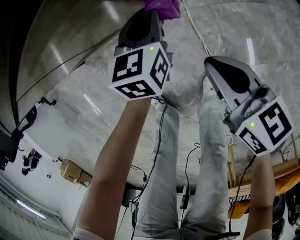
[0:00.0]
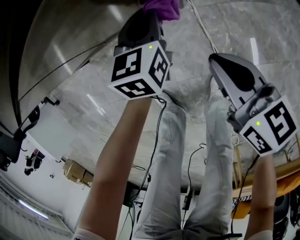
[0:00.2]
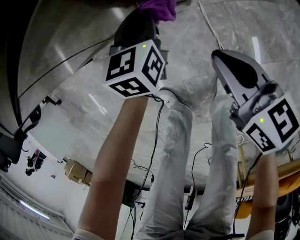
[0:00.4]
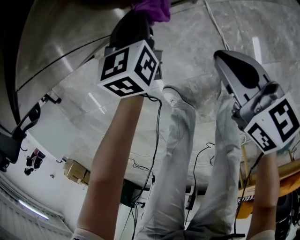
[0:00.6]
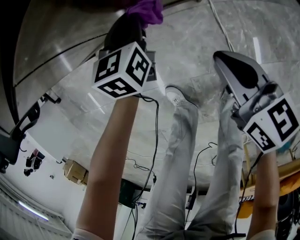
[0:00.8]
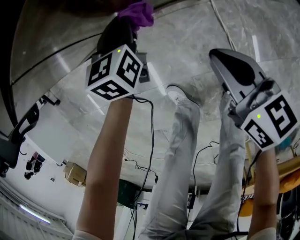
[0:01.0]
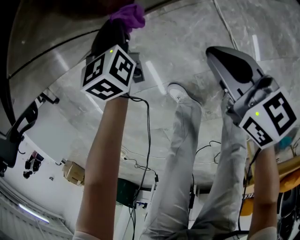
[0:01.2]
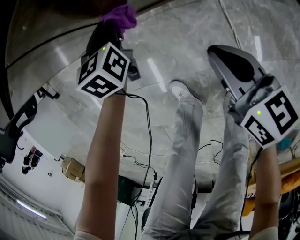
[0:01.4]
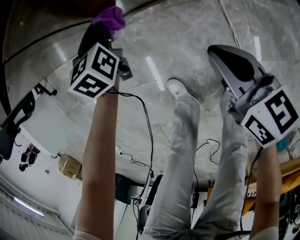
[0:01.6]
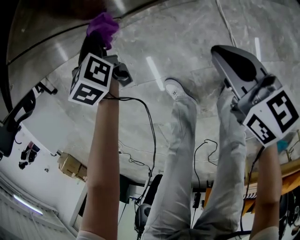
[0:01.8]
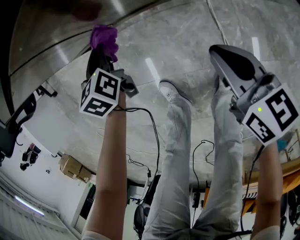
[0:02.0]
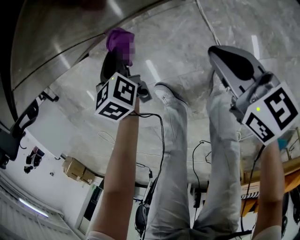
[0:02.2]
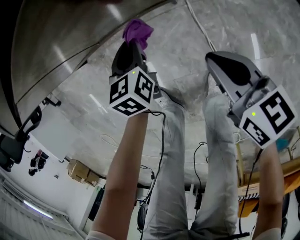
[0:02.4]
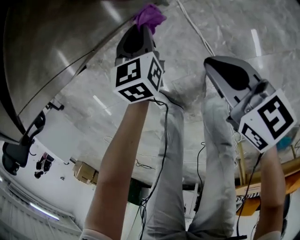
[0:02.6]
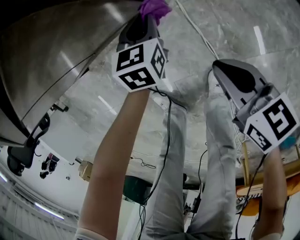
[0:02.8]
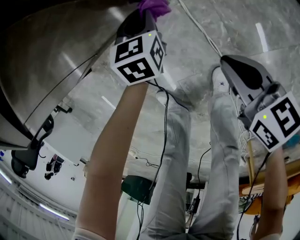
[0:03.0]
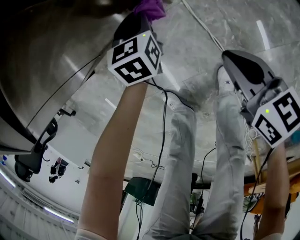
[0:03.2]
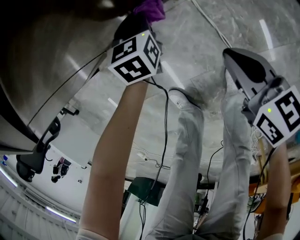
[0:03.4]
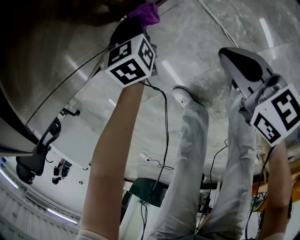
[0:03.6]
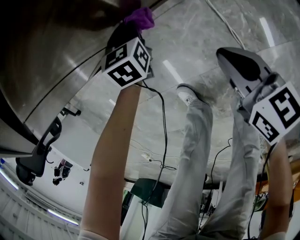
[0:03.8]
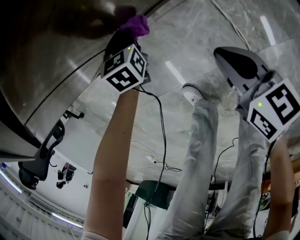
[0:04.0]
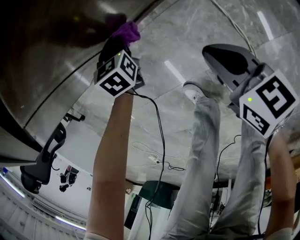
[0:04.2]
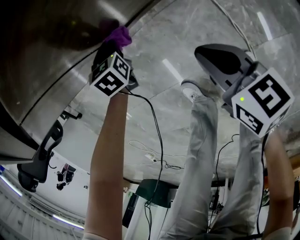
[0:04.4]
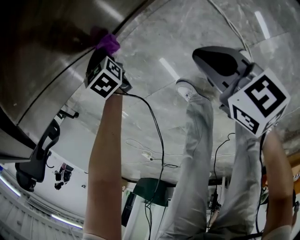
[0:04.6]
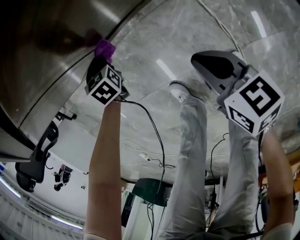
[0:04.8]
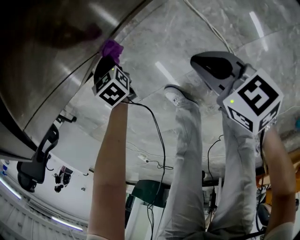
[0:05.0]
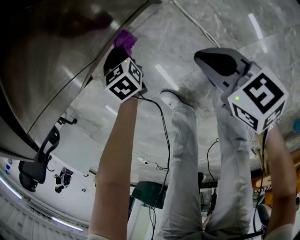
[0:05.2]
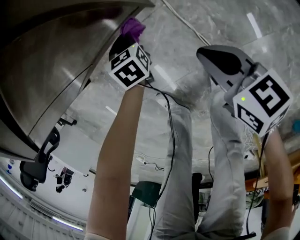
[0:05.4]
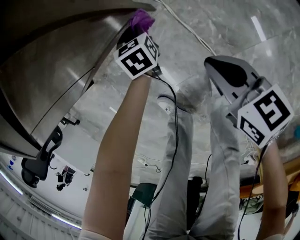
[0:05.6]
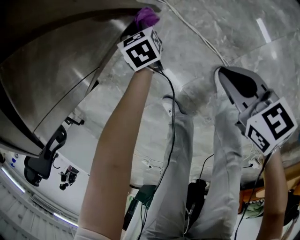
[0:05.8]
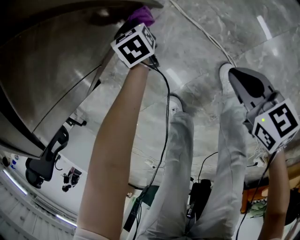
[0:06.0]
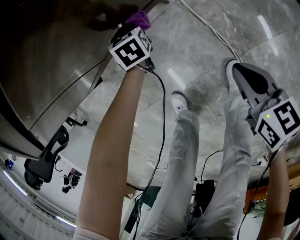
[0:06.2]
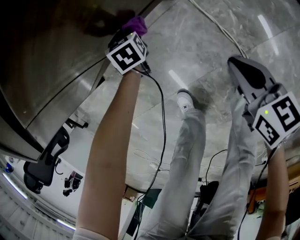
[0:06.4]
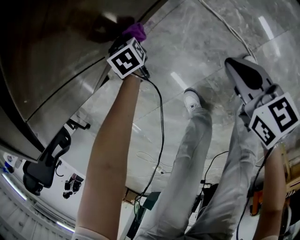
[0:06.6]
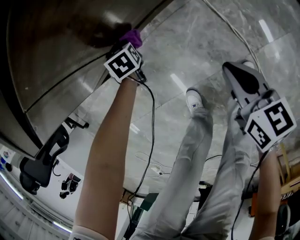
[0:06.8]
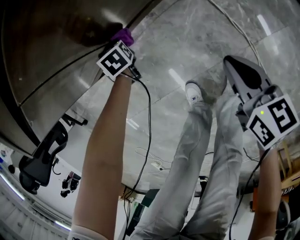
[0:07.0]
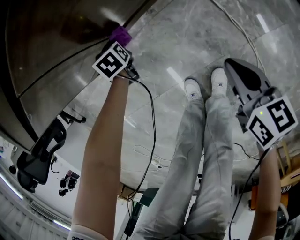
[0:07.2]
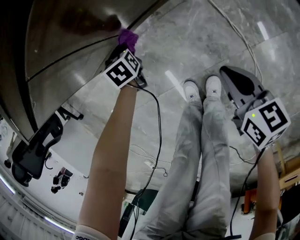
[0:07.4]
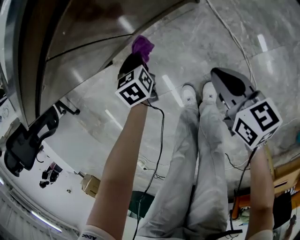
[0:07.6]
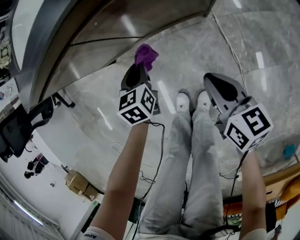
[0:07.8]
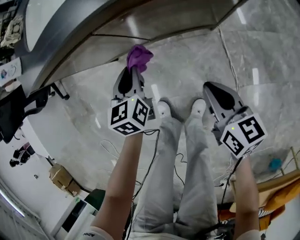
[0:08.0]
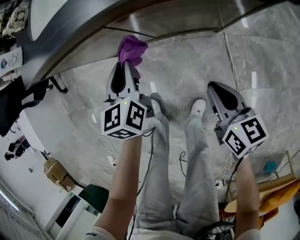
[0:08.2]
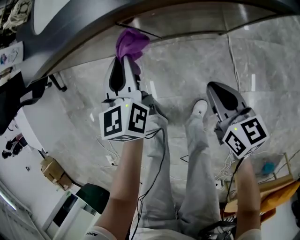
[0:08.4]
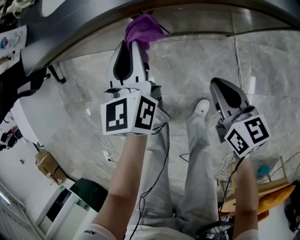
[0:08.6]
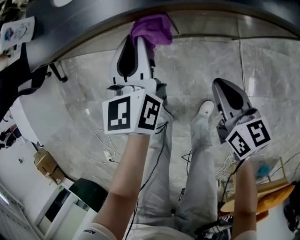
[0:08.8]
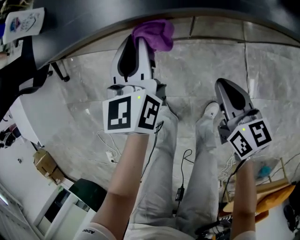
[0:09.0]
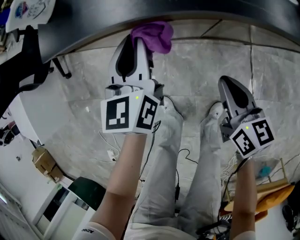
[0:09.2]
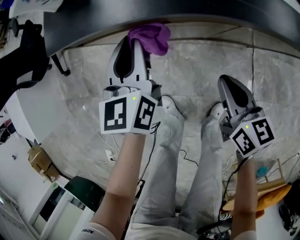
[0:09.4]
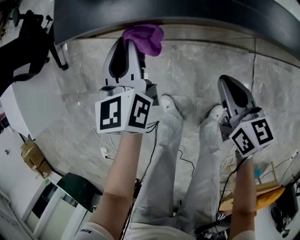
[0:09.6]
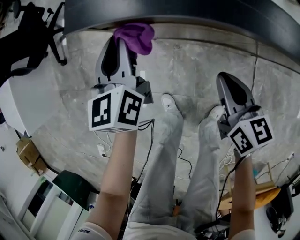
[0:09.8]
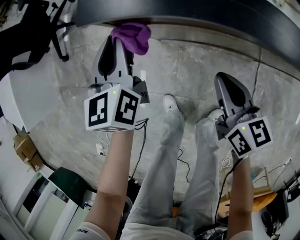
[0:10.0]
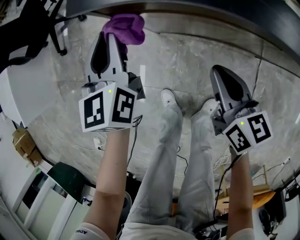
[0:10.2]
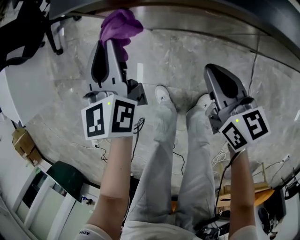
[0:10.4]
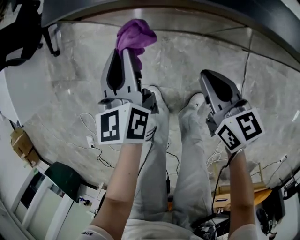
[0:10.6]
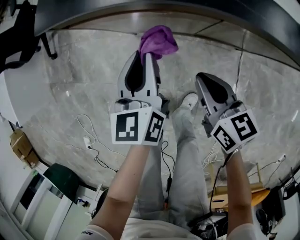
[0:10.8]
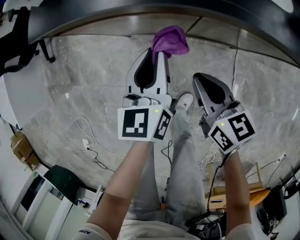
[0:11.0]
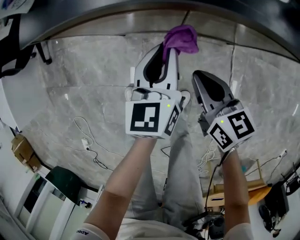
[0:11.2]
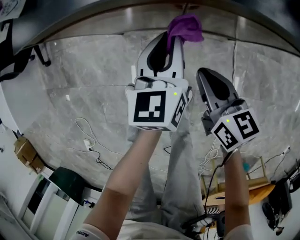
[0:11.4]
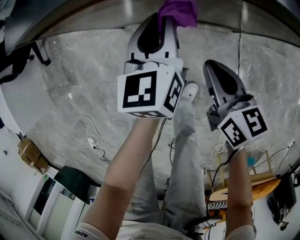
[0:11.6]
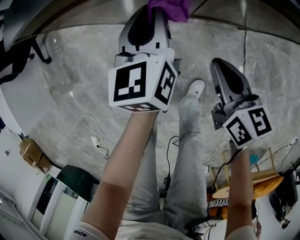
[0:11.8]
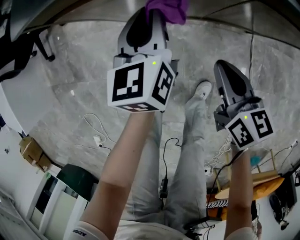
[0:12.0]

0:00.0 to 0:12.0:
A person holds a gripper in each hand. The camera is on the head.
0:00.0 to 0:01.6: The right gripper moves to the left, roughly 15 cm. Meanwhile the left gripper moves to the left, roughly 30 cm.
0:01.6 to 0:03.0: The left gripper heads to the right, covering roughly 35 cm, and changes its angle by about 20 degrees. Meanwhile the right gripper shifts some 20 cm to the right and backward.
0:03.0 to 0:04.4: The right gripper goes some 20 cm to the left. Meanwhile the left gripper shifts some 30 cm to the left.
0:04.4 to 0:06.0: The right gripper goes about 25 cm backward and to the right. Meanwhile the left gripper moves to the right, approximately 25 cm.
0:06.0 to 0:07.6: Both grippers move to the left and upward, roughly 25 cm.
0:07.6 to 0:09.0: The left gripper is displaced upward and to the left by roughly 30 cm, and tilts its fingers roughly 40 degrees upward; the right gripper moves to the left, forward and upward, about 25 cm.
0:09.0 to 0:10.4: The left gripper travels to the left by approximately 20 cm; the right gripper is displaced to the left and forward by roughly 15 cm.
0:10.4 to 0:12.0: The left gripper travels to the right and downward by roughly 15 cm; the right gripper goes about 10 cm to the right and backward.

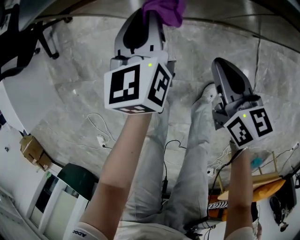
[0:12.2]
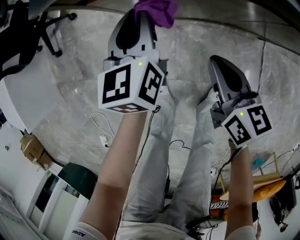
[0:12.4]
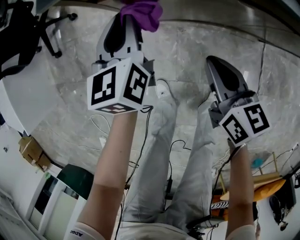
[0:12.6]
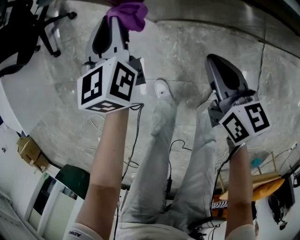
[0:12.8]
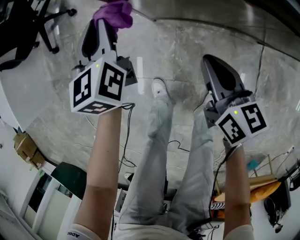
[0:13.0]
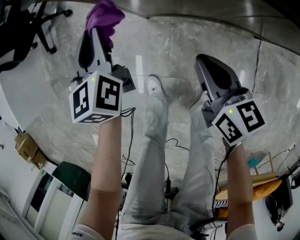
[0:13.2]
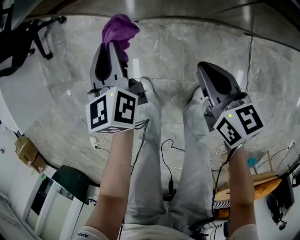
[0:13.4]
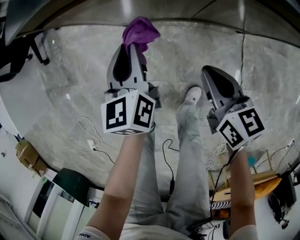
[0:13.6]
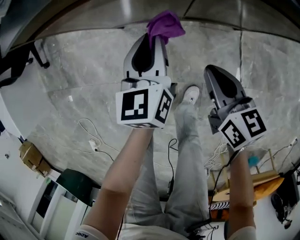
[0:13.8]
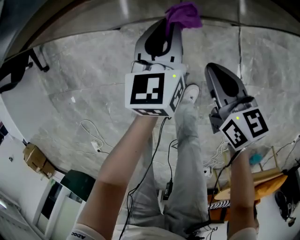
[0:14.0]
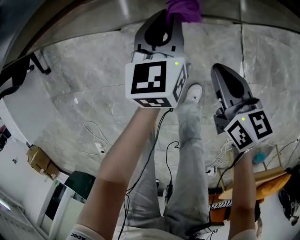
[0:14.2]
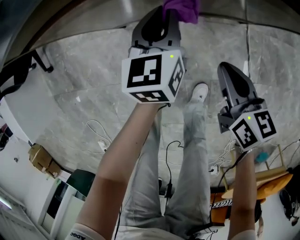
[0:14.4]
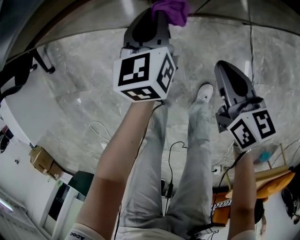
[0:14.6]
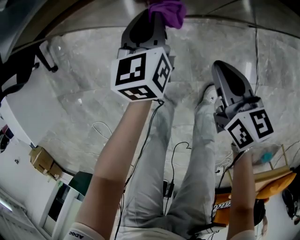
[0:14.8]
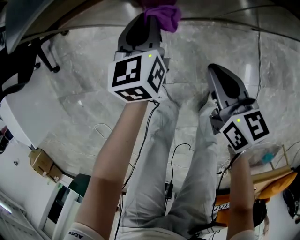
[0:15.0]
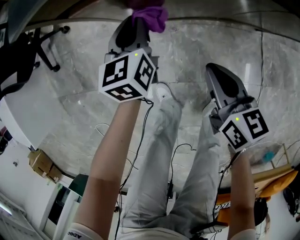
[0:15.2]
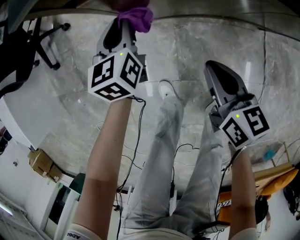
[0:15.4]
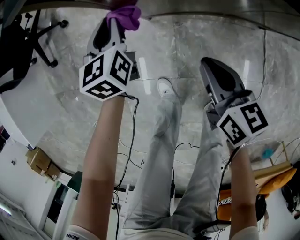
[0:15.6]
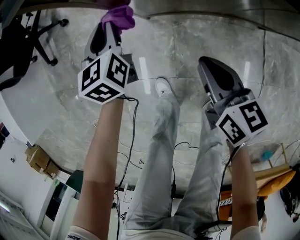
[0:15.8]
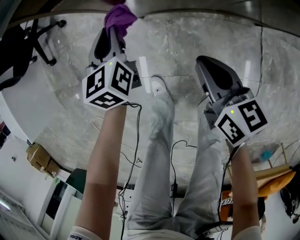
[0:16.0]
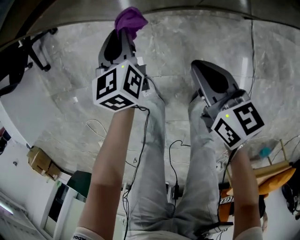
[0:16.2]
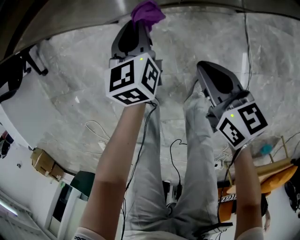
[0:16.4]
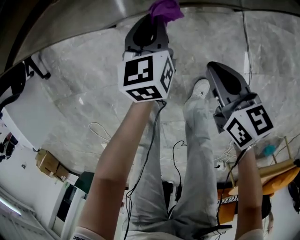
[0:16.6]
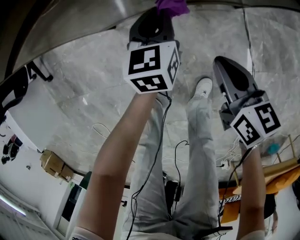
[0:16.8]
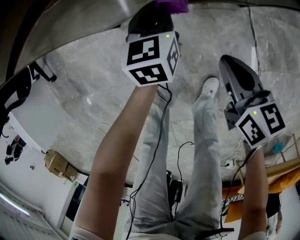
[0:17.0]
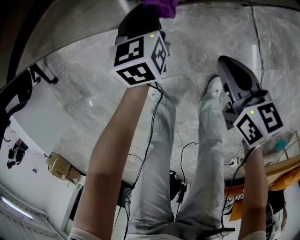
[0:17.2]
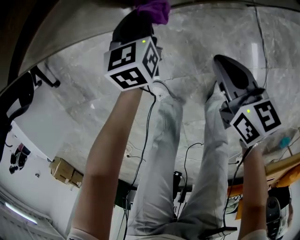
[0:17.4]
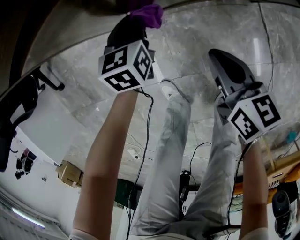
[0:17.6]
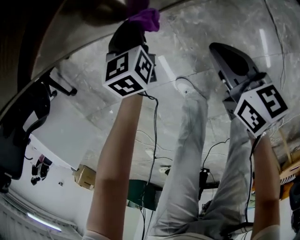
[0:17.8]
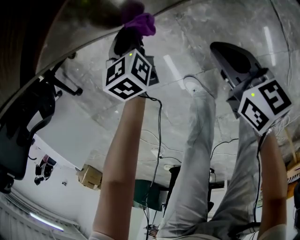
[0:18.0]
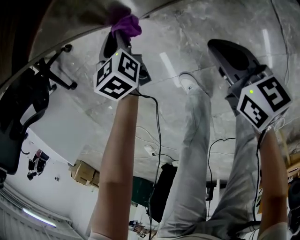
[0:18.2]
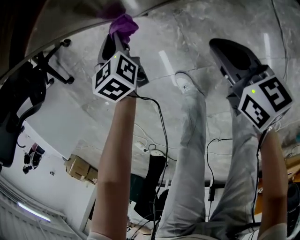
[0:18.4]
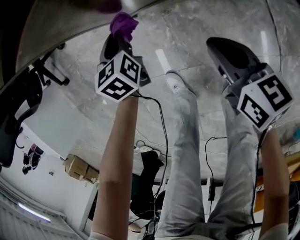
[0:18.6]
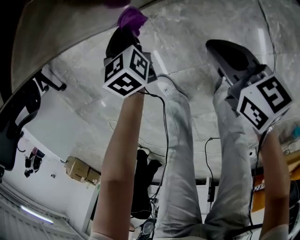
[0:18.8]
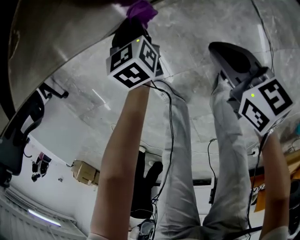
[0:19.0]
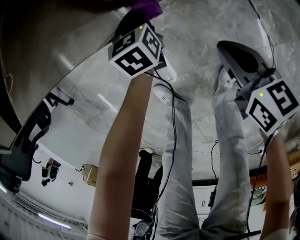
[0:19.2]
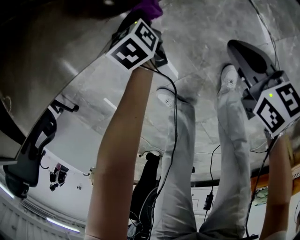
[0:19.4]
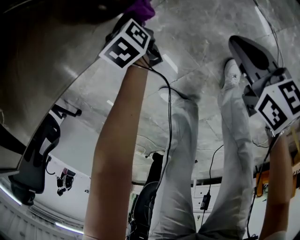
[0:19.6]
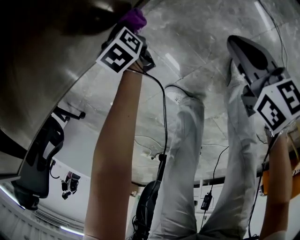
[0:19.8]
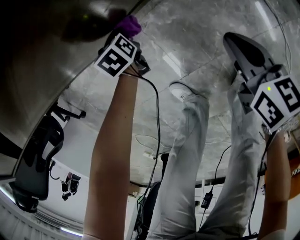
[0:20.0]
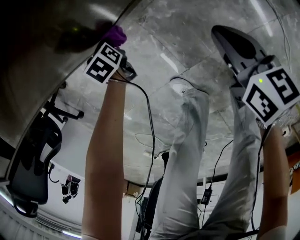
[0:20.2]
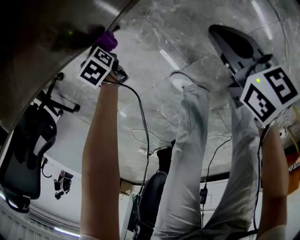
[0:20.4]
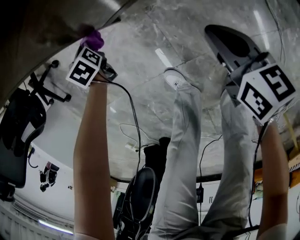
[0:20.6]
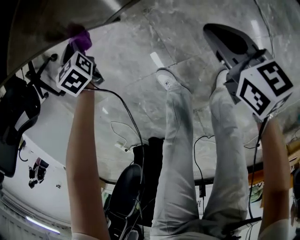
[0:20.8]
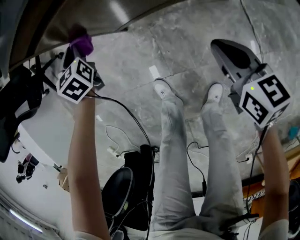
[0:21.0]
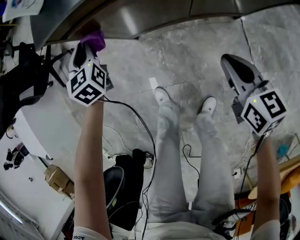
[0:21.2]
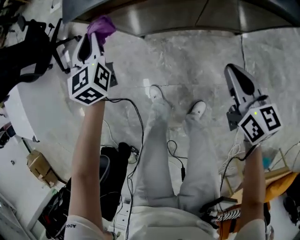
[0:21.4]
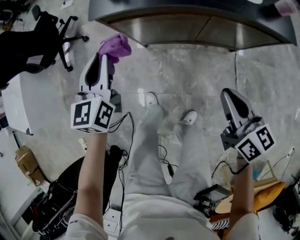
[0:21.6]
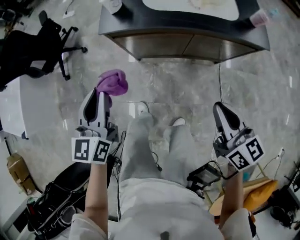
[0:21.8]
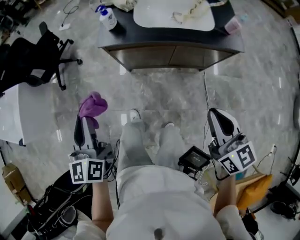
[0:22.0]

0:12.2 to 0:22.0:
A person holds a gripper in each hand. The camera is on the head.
0:12.2 to 0:13.6: The left gripper shifts about 10 cm backward, and goes to the left and returns, roughly 15 cm each way. The right gripper goes about 10 cm backward and to the right.
0:13.6 to 0:15.0: The right gripper shifts approximately 10 cm to the left, while the left gripper is displaced forward and downward by roughly 10 cm, and moves some 15 cm to the right and comes back.
0:15.0 to 0:16.4: The right gripper is displaced to the right and backward by about 10 cm; the left gripper shifts about 10 cm backward and downward, and travels to the left and back again, approximately 15 cm each way.
0:16.4 to 0:17.8: The left gripper heads to the left, forward and downward, covering about 15 cm. The right gripper is displaced to the left and forward by approximately 15 cm.
0:17.8 to 0:19.2: The left gripper heads to the right, covering some 20 cm, while the right gripper heads to the right and backward, covering roughly 20 cm.
0:19.2 to 0:20.6: The right gripper moves to the left, about 15 cm; the left gripper heads to the left, covering about 35 cm, and swivels some 20 degrees.
0:20.6 to 0:22.0: The right gripper travels upward by roughly 60 cm, and turns by approximately 30 degrees, while the left gripper travels upward and backward by about 80 cm, and tips its fingers upward by approximately 40 degrees.

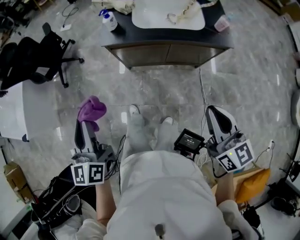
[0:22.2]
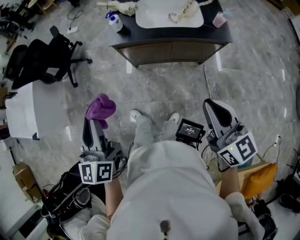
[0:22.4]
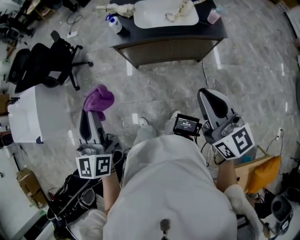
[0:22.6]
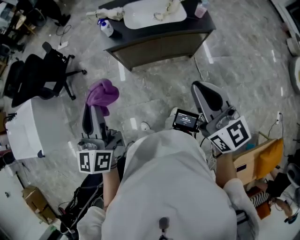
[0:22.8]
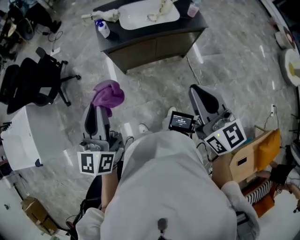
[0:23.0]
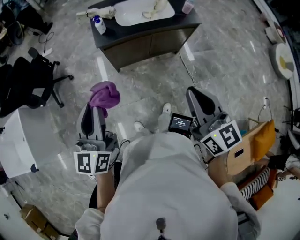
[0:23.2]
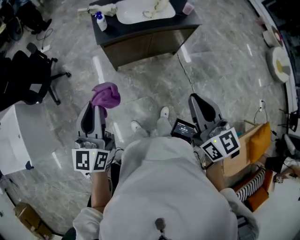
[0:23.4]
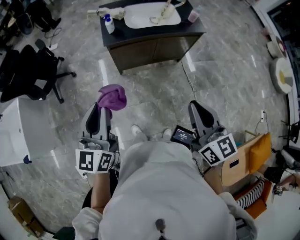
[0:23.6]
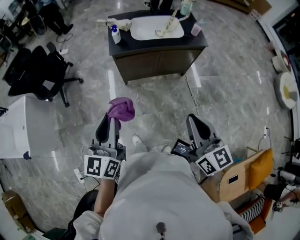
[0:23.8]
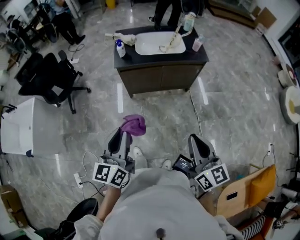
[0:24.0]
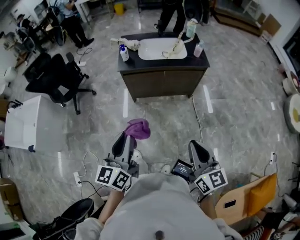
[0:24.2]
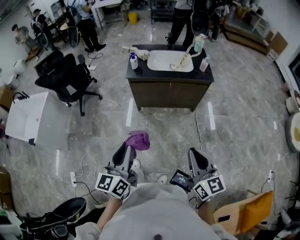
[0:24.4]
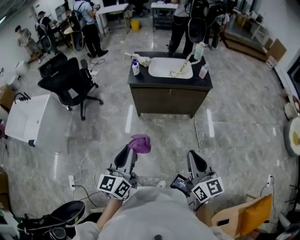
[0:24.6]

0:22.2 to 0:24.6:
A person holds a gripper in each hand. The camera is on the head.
0:22.2 to 0:23.4: The left gripper shifts roughly 10 cm to the left and upward, and rotates roughly 30 degrees; the right gripper moves to the left, backward and upward, approximately 25 cm.
0:23.4 to 0:24.6: Both grippers move backward and to the right, roughly 25 cm.
